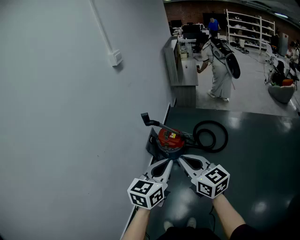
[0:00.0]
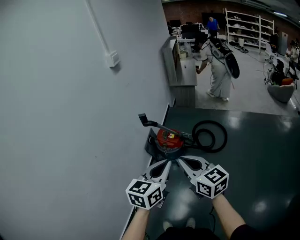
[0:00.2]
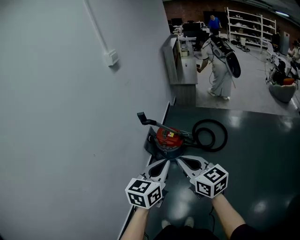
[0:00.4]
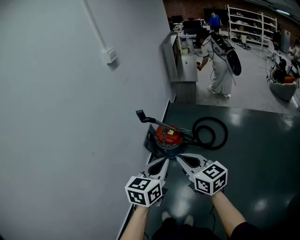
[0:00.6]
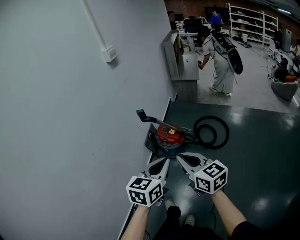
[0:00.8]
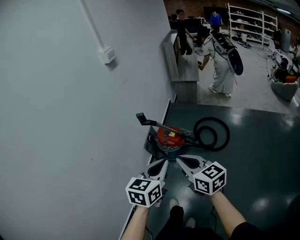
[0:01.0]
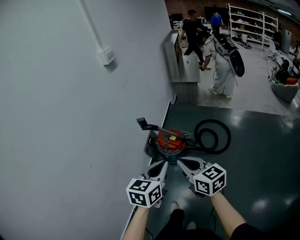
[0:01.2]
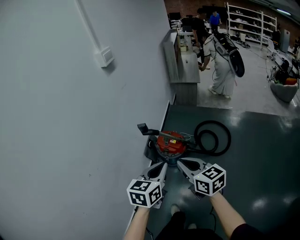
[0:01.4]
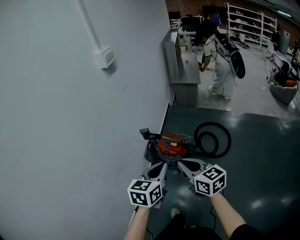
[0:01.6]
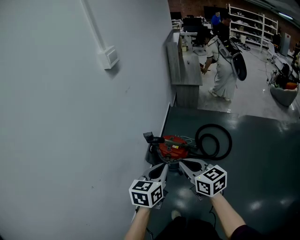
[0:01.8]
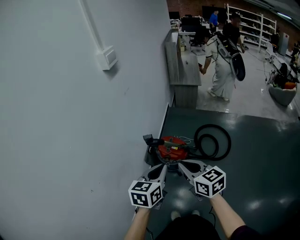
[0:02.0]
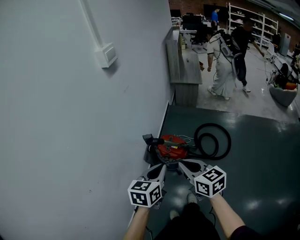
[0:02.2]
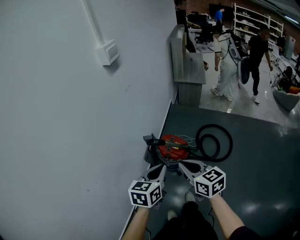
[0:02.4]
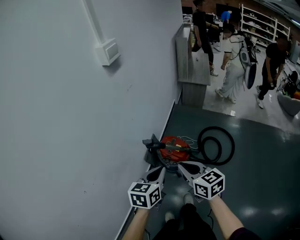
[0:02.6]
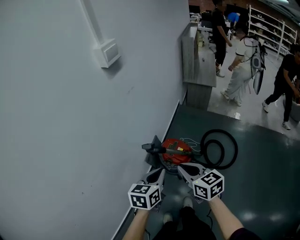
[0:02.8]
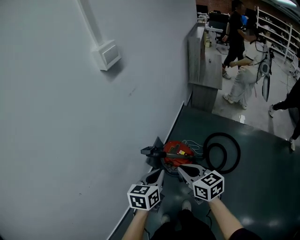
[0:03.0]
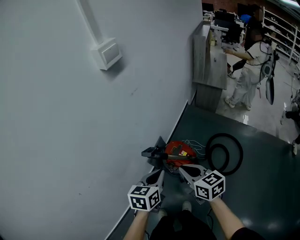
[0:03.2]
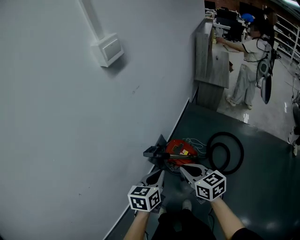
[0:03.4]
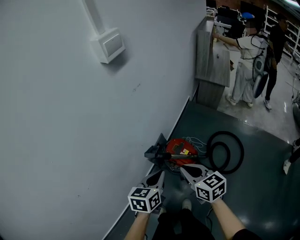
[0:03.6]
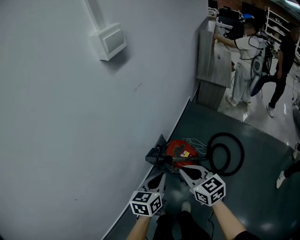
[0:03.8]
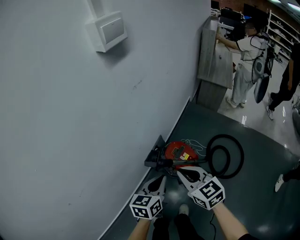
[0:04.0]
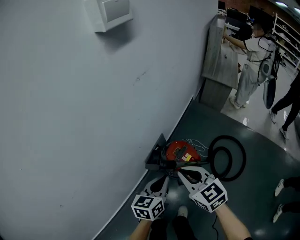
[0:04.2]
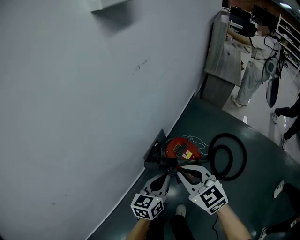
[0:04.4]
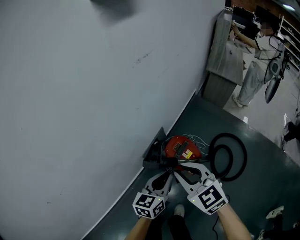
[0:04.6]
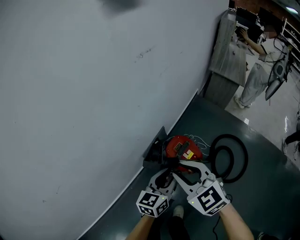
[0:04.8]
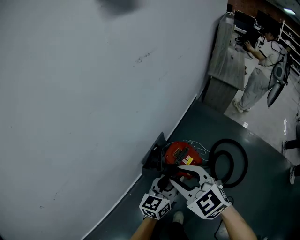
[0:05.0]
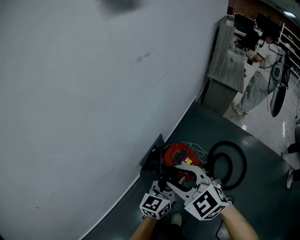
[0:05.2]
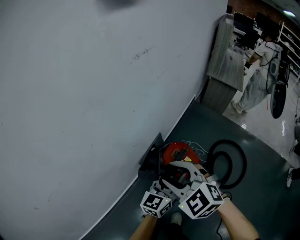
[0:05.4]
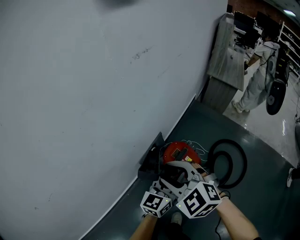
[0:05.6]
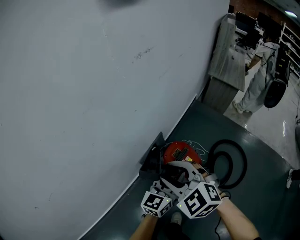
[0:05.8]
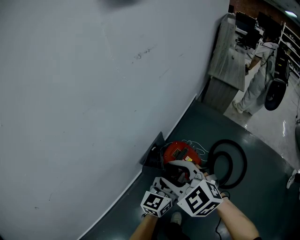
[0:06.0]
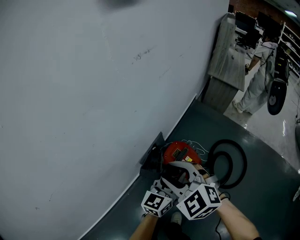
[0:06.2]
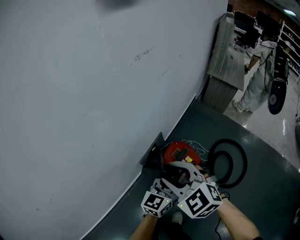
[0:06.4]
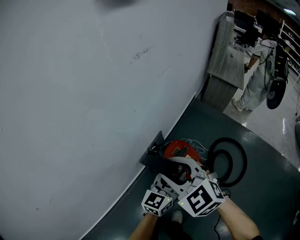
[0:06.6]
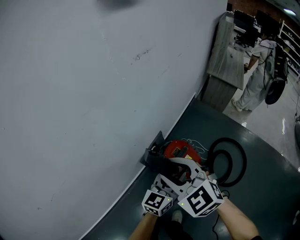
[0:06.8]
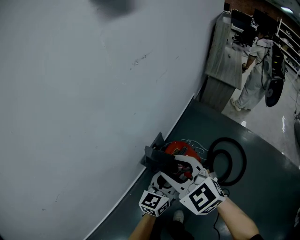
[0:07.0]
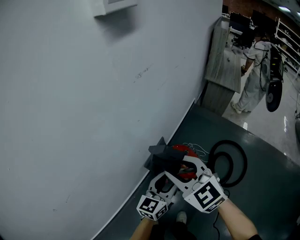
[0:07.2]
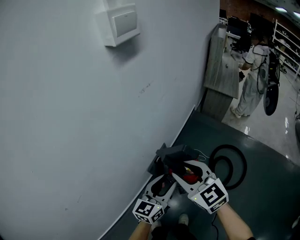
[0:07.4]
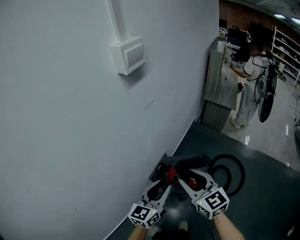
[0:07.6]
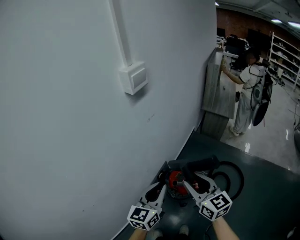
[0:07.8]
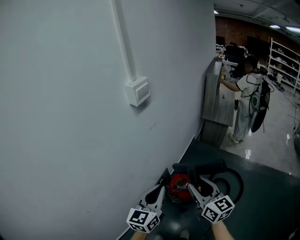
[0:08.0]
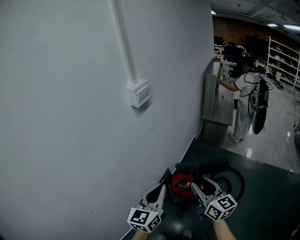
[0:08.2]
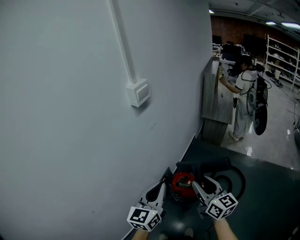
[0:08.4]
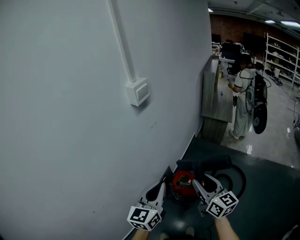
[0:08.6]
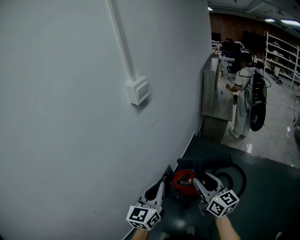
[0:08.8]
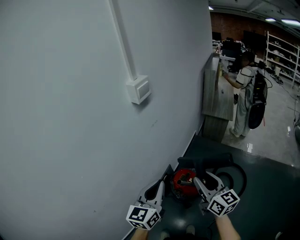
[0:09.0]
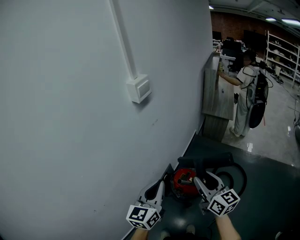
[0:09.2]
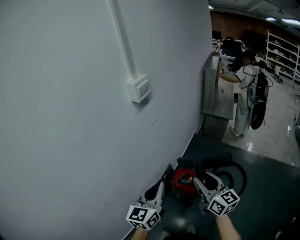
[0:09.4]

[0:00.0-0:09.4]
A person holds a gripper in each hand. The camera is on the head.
0:00.0 to 0:01.6: The two grippers go roughly 20 cm forward.
0:01.6 to 0:03.2: The right gripper goes roughly 15 cm forward, while the left gripper heads forward and downward, covering some 15 cm.
0:03.2 to 0:04.8: The right gripper travels downward, forward and to the left by roughly 15 cm, and rotates about 40 degrees. Meanwhile the left gripper moves downward and forward, roughly 20 cm, and opens.
0:04.8 to 0:06.2: There are only small adjustments of the grippers.
0:06.2 to 0:07.8: The left gripper moves upward, some 25 cm. Meanwhile the right gripper shifts about 20 cm upward and to the right, and rotates roughly 50 degrees.
0:07.8 to 0:09.4: The right gripper moves roughly 5 cm, while the left gripper goes about 5 cm upward.

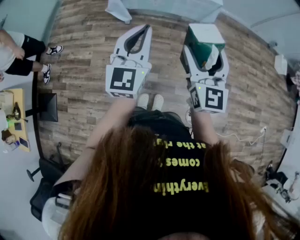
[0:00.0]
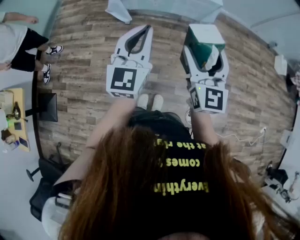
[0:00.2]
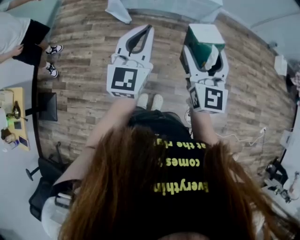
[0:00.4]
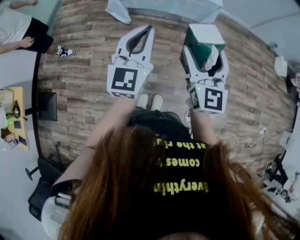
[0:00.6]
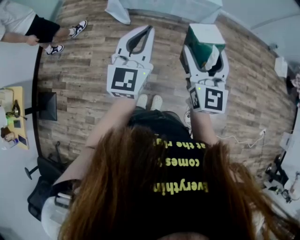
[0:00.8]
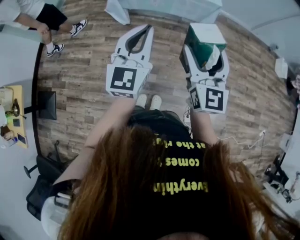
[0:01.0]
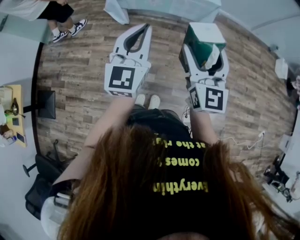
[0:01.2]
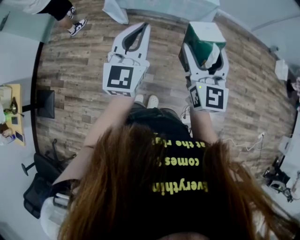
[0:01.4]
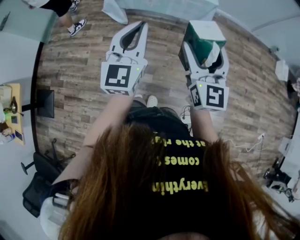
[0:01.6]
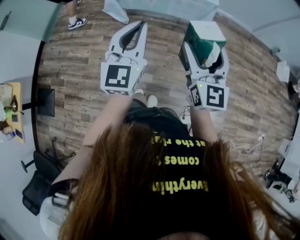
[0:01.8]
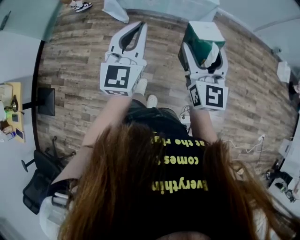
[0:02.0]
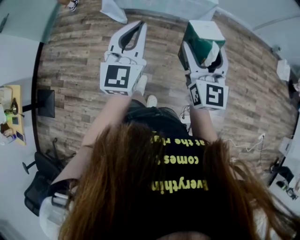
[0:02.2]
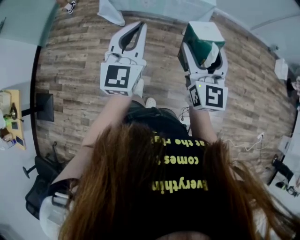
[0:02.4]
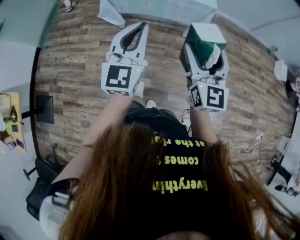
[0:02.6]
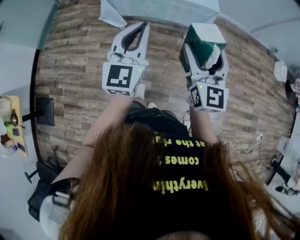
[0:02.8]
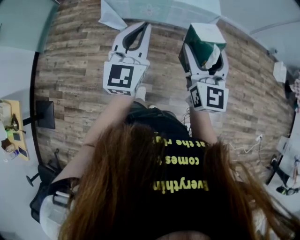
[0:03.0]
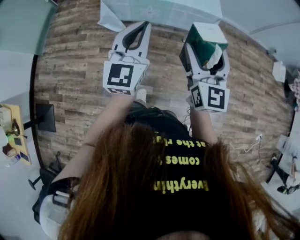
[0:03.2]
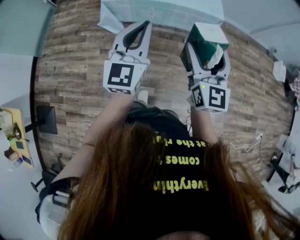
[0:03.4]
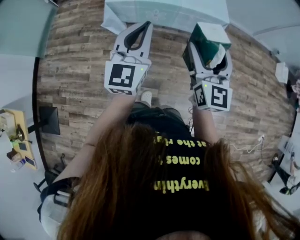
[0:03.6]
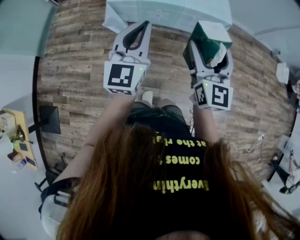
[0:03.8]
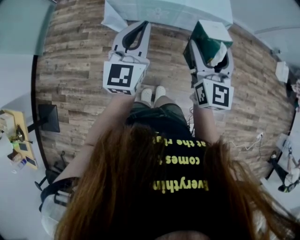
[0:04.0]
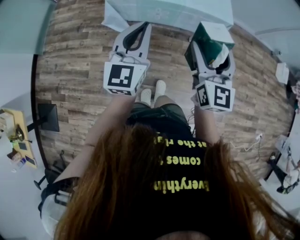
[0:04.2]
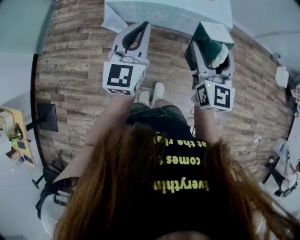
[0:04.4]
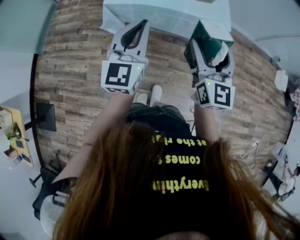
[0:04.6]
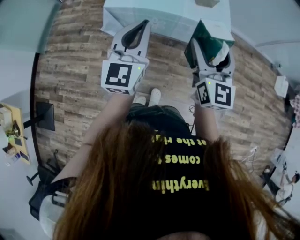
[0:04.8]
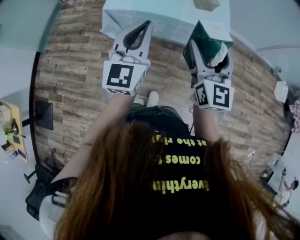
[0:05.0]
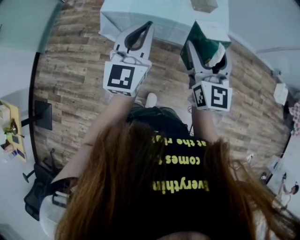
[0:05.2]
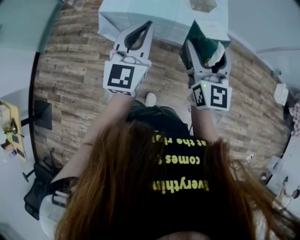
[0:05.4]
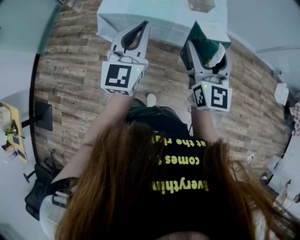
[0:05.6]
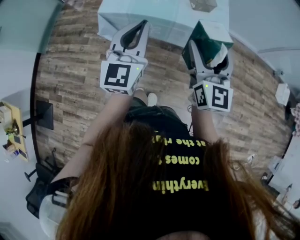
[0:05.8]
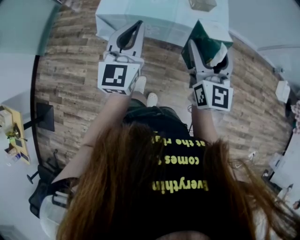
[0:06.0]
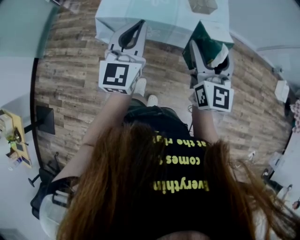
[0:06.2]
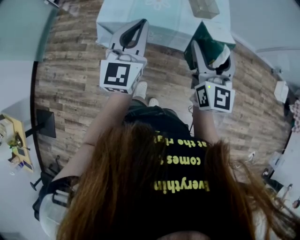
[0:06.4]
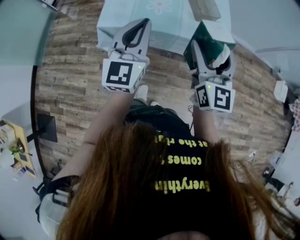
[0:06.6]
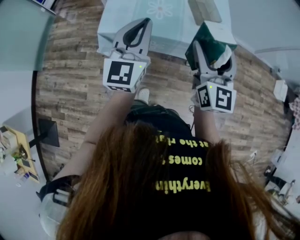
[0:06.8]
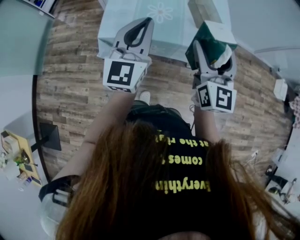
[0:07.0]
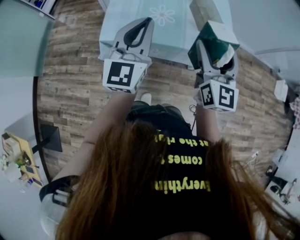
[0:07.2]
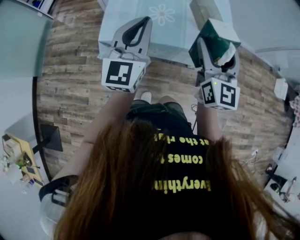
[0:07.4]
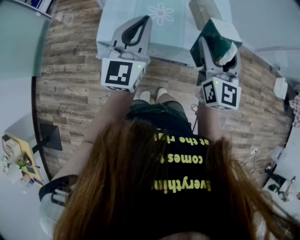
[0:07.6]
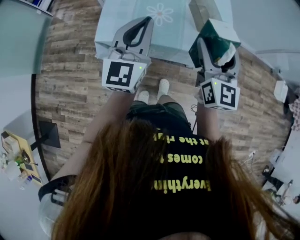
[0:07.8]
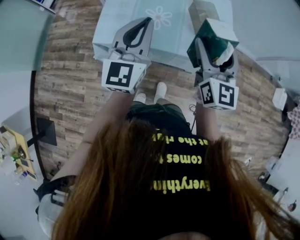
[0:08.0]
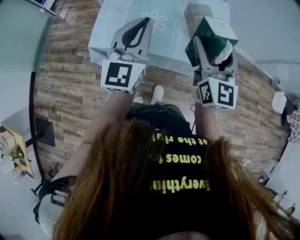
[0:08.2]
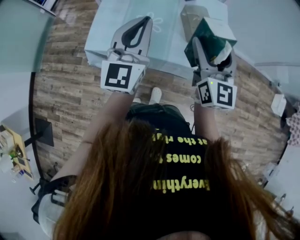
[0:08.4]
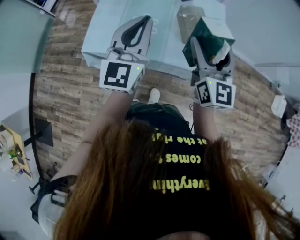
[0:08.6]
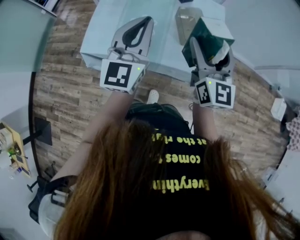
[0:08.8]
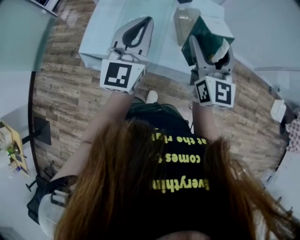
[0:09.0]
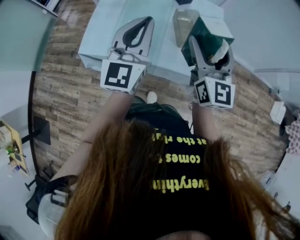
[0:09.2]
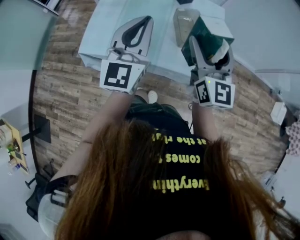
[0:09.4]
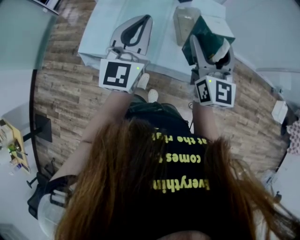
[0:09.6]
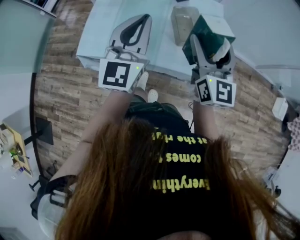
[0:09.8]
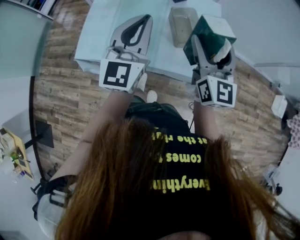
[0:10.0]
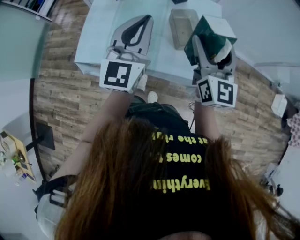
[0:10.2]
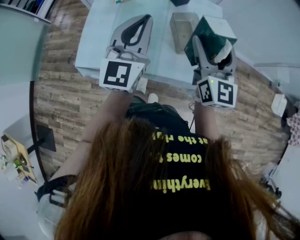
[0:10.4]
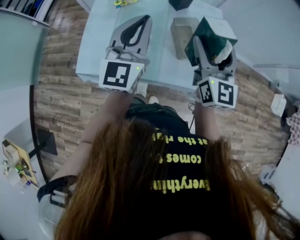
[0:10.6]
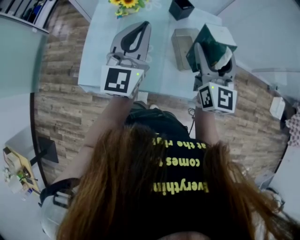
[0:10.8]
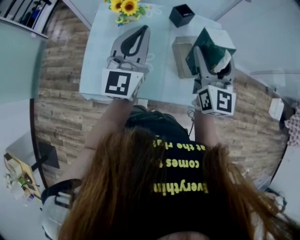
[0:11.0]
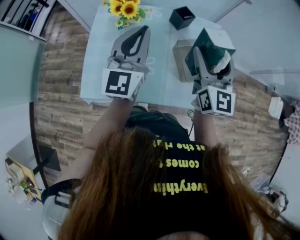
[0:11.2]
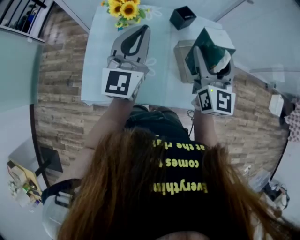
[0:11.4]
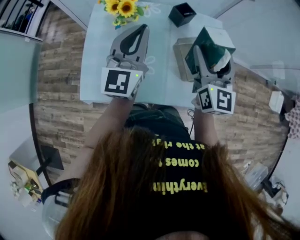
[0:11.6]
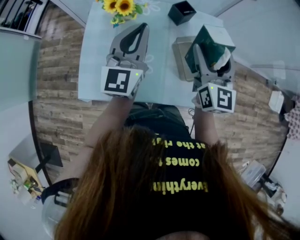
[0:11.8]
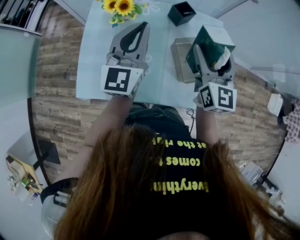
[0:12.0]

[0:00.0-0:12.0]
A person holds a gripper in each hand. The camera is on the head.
0:00.0 to 0:01.6: Both grippers travel together to the right, about 5 cm.
0:01.6 to 0:03.0: Both grippers move forward, approximately 10 cm.
0:03.0 to 0:04.4: The right gripper travels forward by about 10 cm. Meanwhile the left gripper moves forward and to the left, roughly 15 cm.
0:04.4 to 0:06.0: Both grippers travel together forward and to the right, some 10 cm.
0:06.0 to 0:07.6: Both grippers travel together forward, about 15 cm.
0:07.6 to 0:09.0: The right gripper moves forward and to the right, about 15 cm; the left gripper shifts some 15 cm to the right and forward.
0:09.0 to 0:10.4: Both grippers travel together forward, some 5 cm.
0:10.4 to 0:12.0: The left gripper shifts approximately 15 cm forward and to the left; the right gripper is displaced forward by approximately 15 cm.

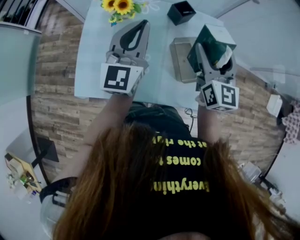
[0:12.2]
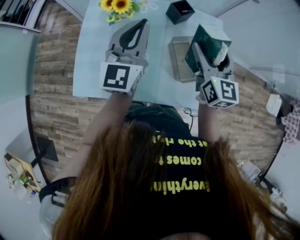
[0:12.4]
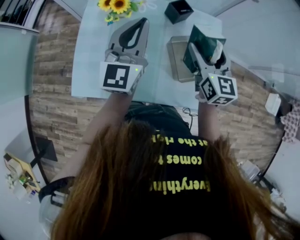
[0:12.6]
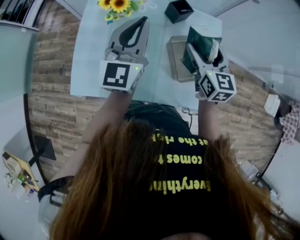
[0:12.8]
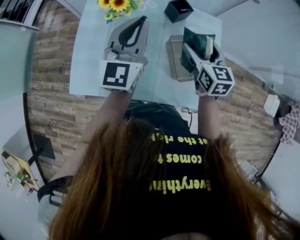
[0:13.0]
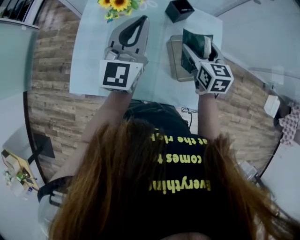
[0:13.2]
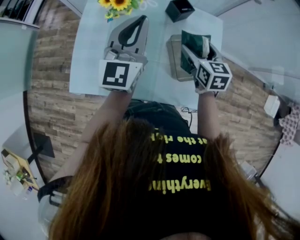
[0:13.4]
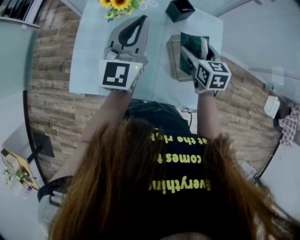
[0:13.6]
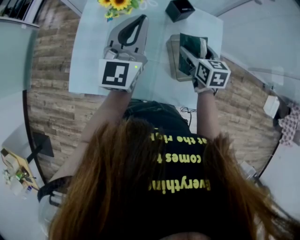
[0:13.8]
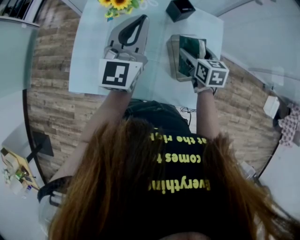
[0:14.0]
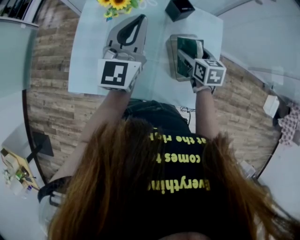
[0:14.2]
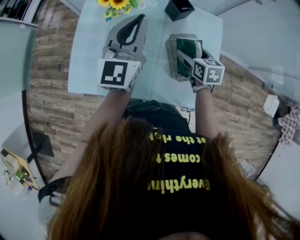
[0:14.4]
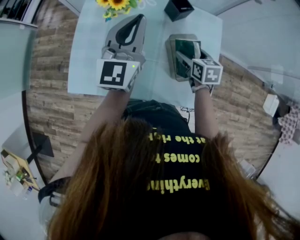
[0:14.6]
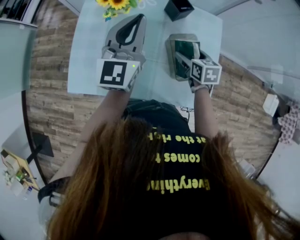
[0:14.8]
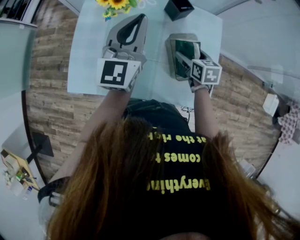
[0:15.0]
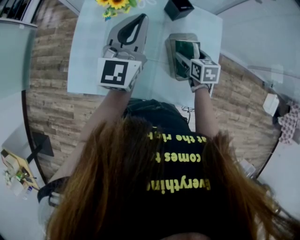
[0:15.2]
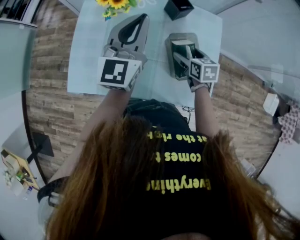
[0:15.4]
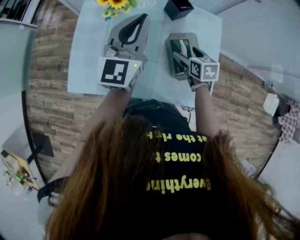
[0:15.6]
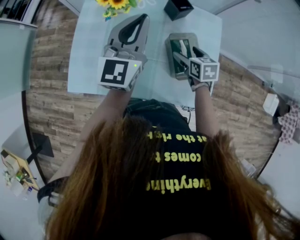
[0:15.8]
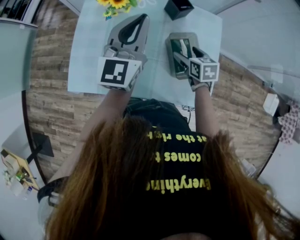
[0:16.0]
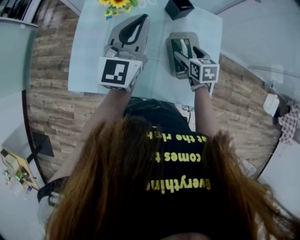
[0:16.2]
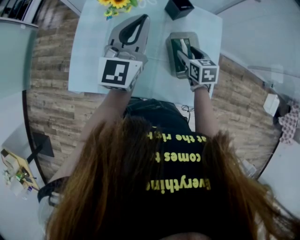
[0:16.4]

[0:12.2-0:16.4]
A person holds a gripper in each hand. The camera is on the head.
0:12.2 to 0:13.6: The right gripper travels downward by some 15 cm, and tips its fingers downward by some 30 degrees.
0:13.6 to 0:15.0: The right gripper goes about 10 cm downward.
0:15.0 to 0:16.4: The grippers move only a little.
